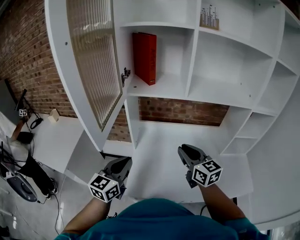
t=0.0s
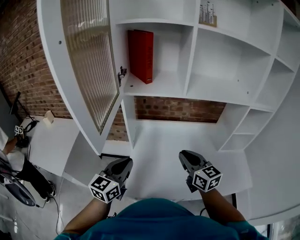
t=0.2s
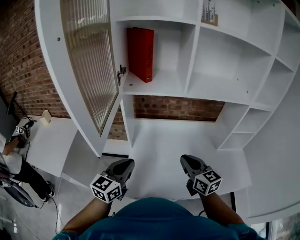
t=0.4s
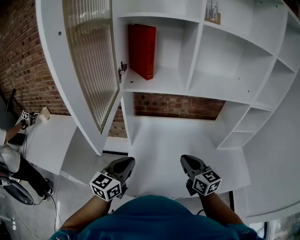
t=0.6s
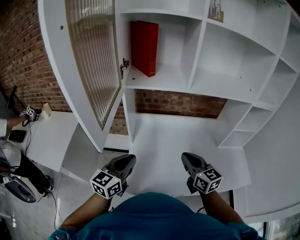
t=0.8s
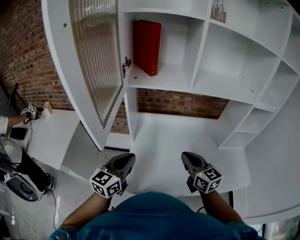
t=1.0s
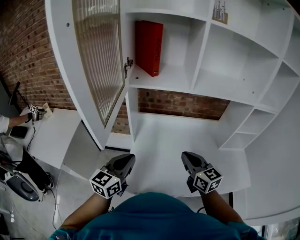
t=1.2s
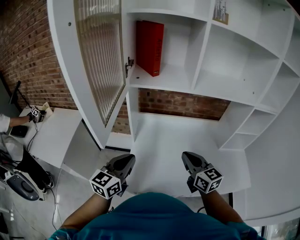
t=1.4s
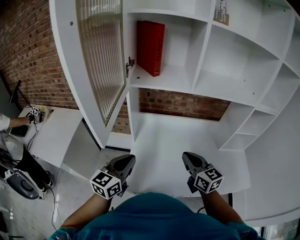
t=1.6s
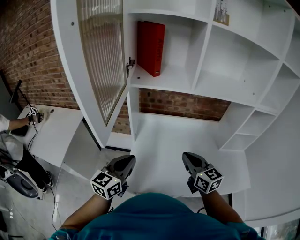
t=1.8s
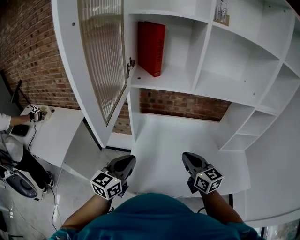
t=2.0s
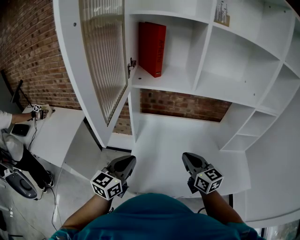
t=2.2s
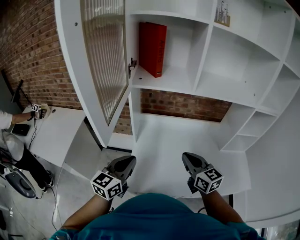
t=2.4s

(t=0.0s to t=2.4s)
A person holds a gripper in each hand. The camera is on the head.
t=0.0s - t=1.2s: The right gripper ends up approximately 5 cm from where it was.
t=1.2s - t=2.4s: Both grippers stay put.

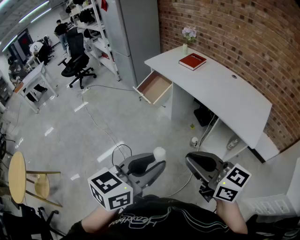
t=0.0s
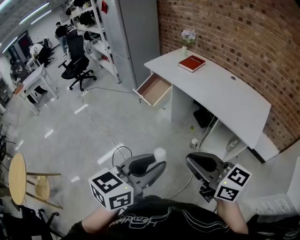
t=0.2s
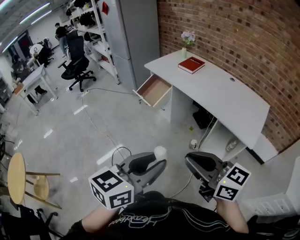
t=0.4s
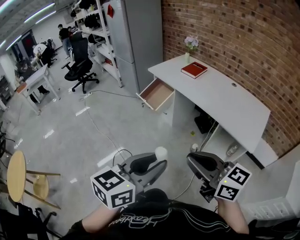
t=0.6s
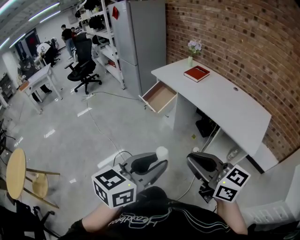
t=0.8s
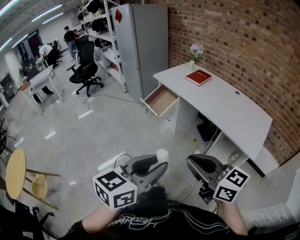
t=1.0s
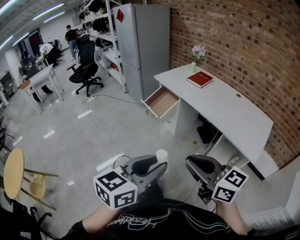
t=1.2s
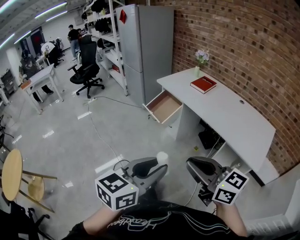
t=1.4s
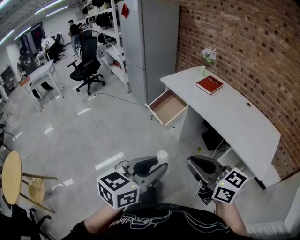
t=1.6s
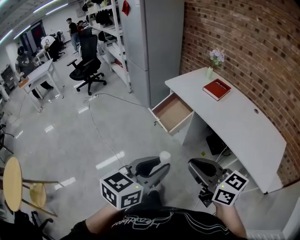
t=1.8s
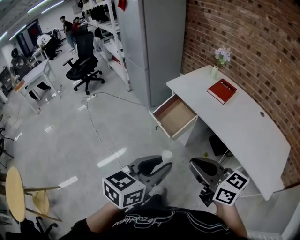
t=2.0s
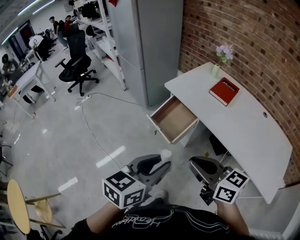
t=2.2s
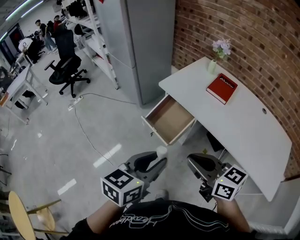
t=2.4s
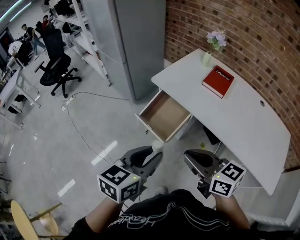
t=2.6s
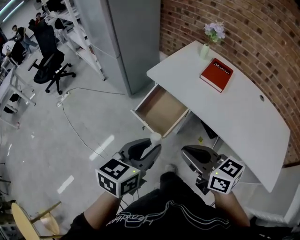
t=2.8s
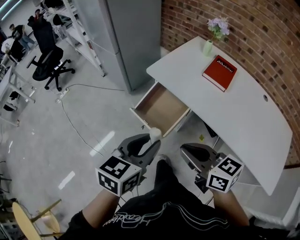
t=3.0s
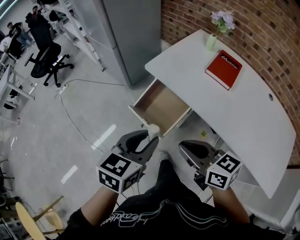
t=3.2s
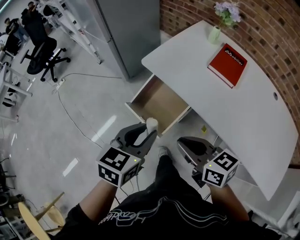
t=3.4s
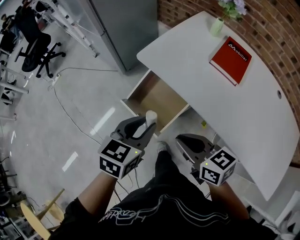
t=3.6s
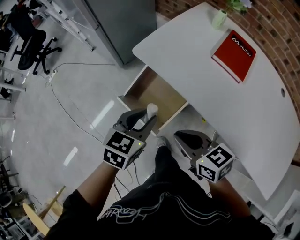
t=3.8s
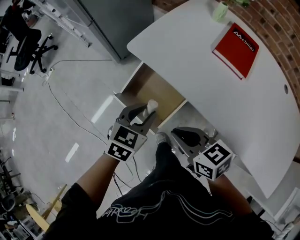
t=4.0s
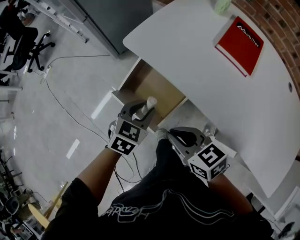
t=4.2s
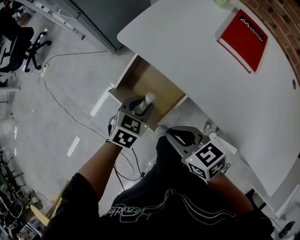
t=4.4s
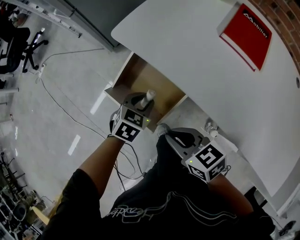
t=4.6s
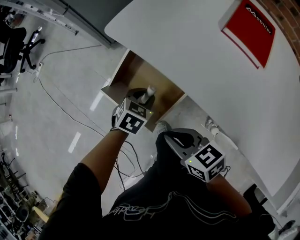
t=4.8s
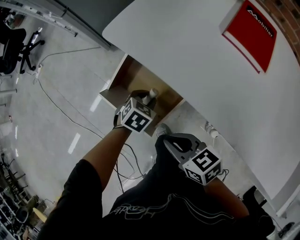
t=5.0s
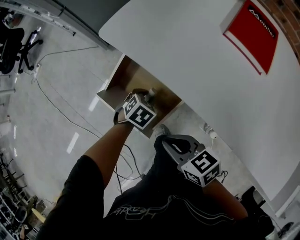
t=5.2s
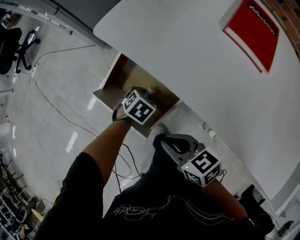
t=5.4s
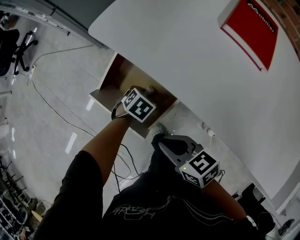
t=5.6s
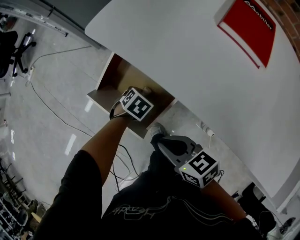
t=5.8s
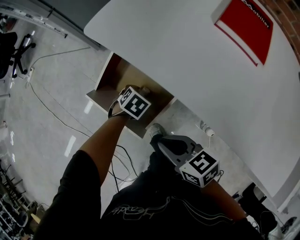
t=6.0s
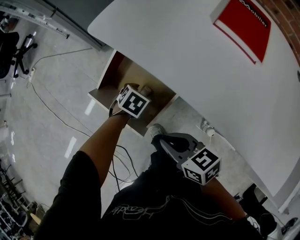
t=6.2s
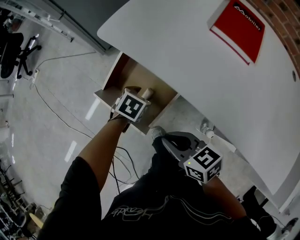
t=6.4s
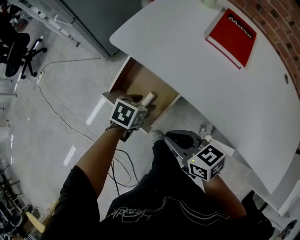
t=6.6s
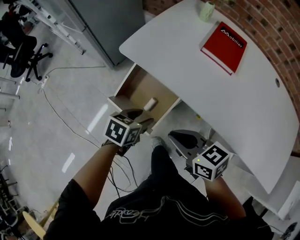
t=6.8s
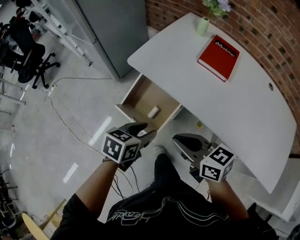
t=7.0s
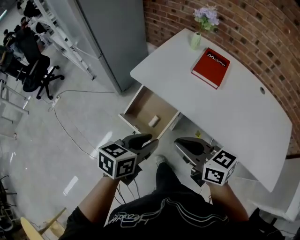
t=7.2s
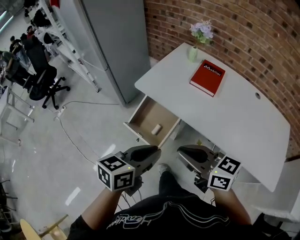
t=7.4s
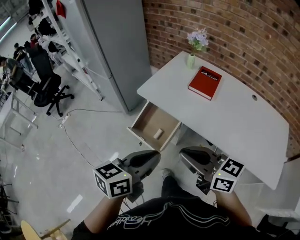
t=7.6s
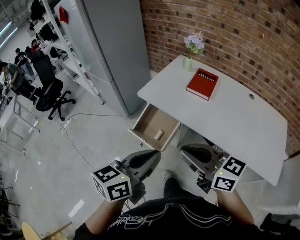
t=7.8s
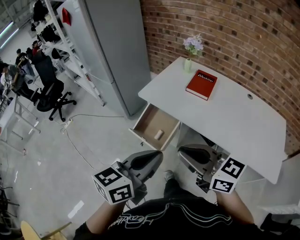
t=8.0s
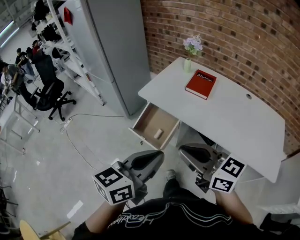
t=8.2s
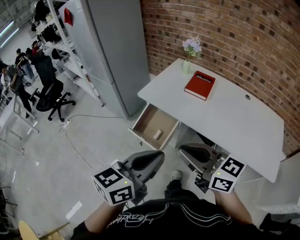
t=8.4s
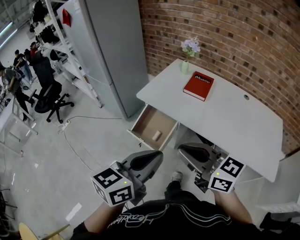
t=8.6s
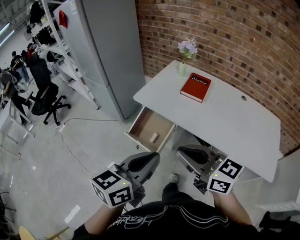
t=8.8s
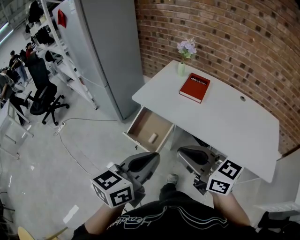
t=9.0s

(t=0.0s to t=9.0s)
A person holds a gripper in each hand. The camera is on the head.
t=0.0s - t=1.6s: The grippers both shift forward and to the left by about 15 cm.
t=1.6s - t=3.0s: Both grippers are carried forward, some 50 cm.
t=3.0s - t=4.4s: The two grippers go about 35 cm downward and forward. The left gripper changes its angle by approximately 30 degrees.
t=4.4s - t=6.0s: The right gripper travels downward by approximately 10 cm; the left gripper moves downward, about 20 cm, and turns by roughly 30 degrees.
t=6.0s - t=7.6s: Both grippers travel together upward, about 50 cm. The left gripper tips its fingers upward by roughly 60 degrees, and closes up; the right gripper rotates some 30 degrees.
t=7.6s - t=9.0s: The right gripper is displaced backward by roughly 5 cm; the left gripper travels upward and backward by some 10 cm.

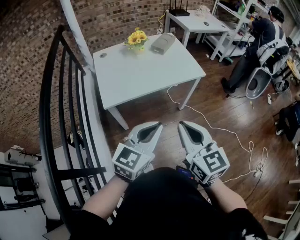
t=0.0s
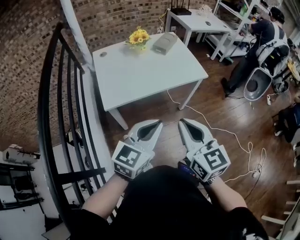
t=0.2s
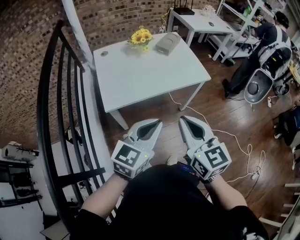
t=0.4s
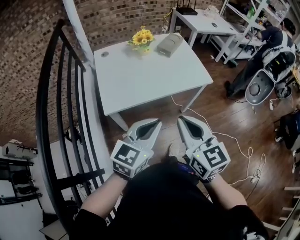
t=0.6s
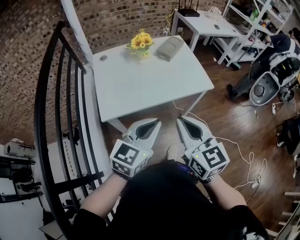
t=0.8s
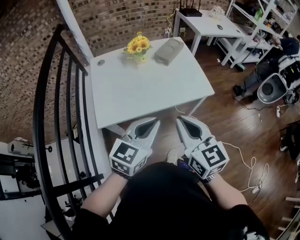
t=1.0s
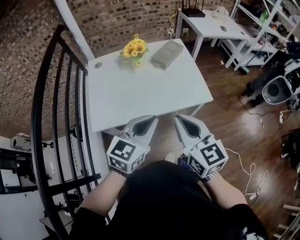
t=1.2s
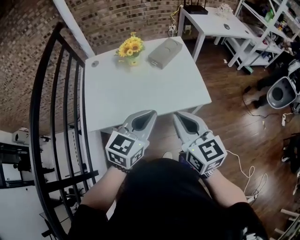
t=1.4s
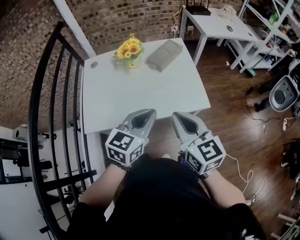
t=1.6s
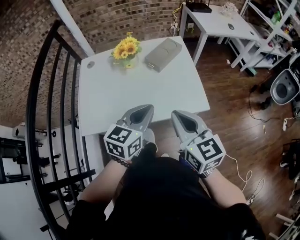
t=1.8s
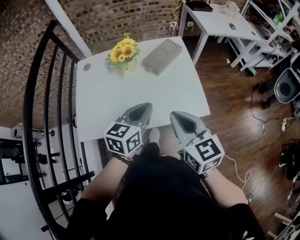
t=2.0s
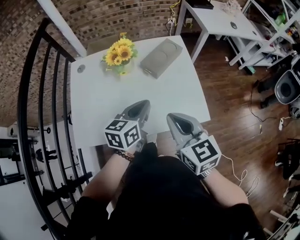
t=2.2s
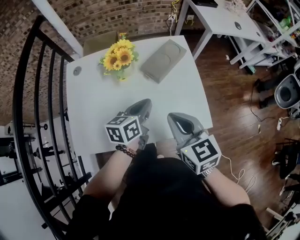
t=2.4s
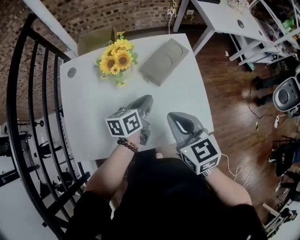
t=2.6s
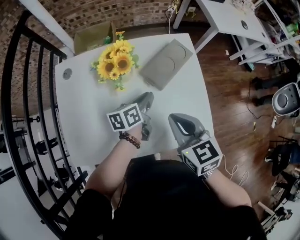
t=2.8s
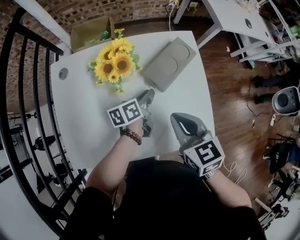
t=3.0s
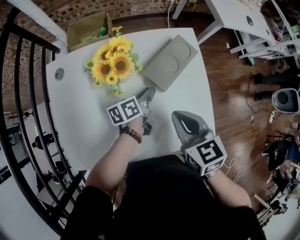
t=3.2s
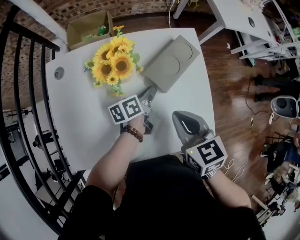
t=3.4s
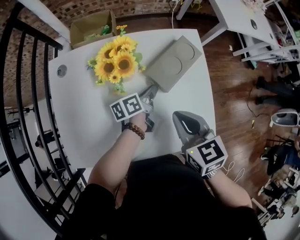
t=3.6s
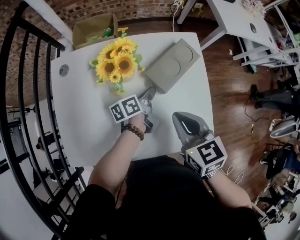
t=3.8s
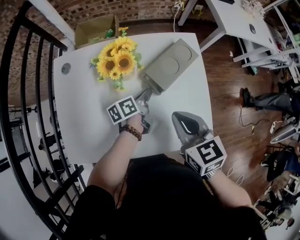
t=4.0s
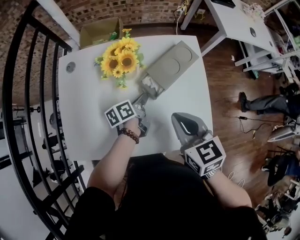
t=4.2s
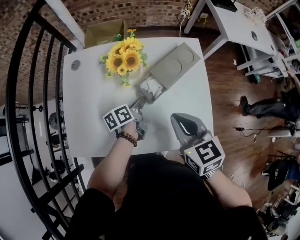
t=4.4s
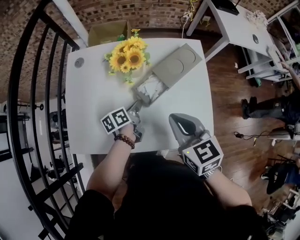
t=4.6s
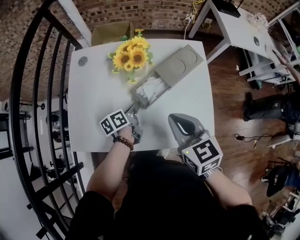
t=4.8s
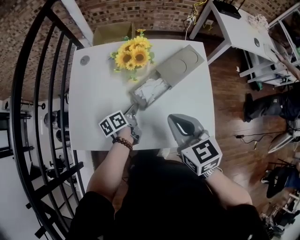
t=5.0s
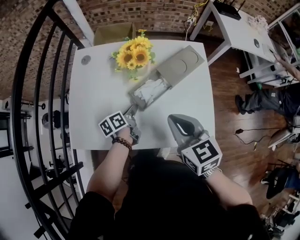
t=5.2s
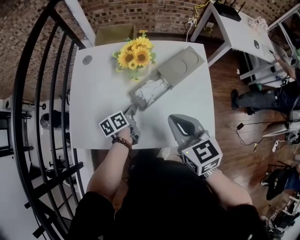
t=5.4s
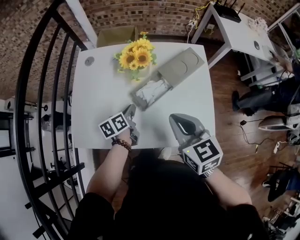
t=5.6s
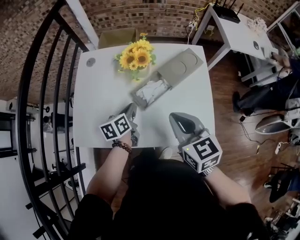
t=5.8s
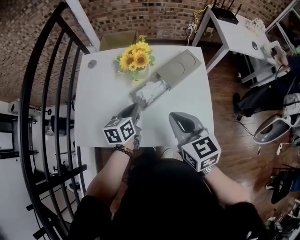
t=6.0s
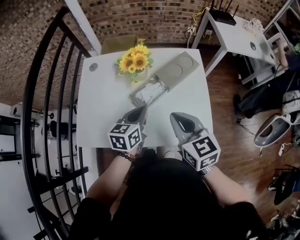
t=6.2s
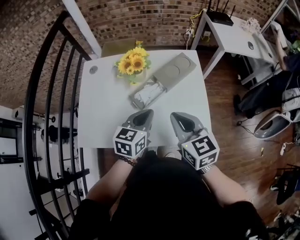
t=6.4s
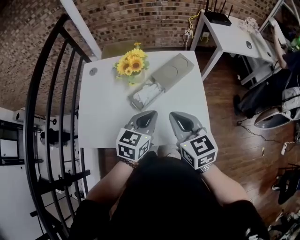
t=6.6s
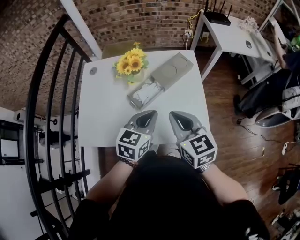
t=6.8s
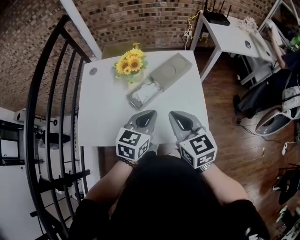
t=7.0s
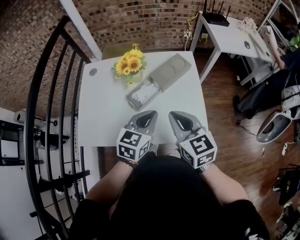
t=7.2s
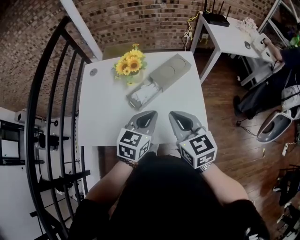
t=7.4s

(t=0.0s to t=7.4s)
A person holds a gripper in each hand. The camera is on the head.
t=0.0s - t=1.4s: Both grippers move forward, approximately 30 cm.
t=1.4s - t=3.0s: The grippers both shift forward and downward by roughly 40 cm. The right gripper rotates about 20 degrees. Meanwhile the left gripper rolls counterclockwise, seen from behind, by approximately 60 degrees.
t=3.0s - t=4.4s: The left gripper shifts by some 5 cm.
t=4.4s - t=6.0s: The right gripper changes place by about 5 cm. The left gripper goes roughly 15 cm upward, backward and to the left, and changes its angle by roughly 30 degrees.
t=6.0s - t=7.4s: The right gripper ends up some 5 cm from where it was. The left gripper moves to the right, upward and backward, some 15 cm, and swivels approximately 30 degrees.

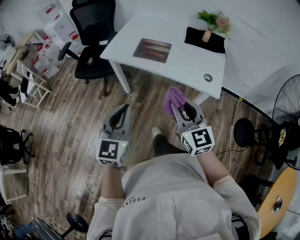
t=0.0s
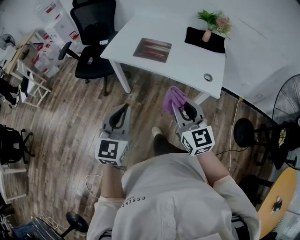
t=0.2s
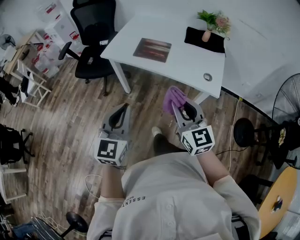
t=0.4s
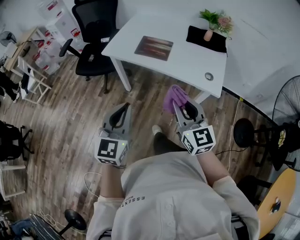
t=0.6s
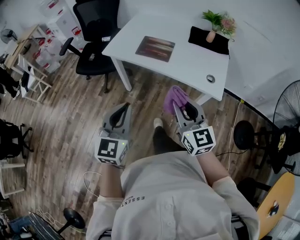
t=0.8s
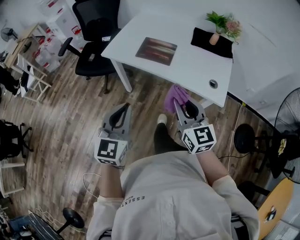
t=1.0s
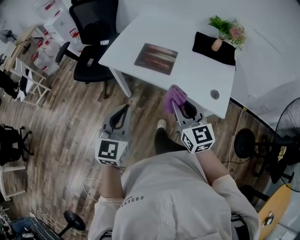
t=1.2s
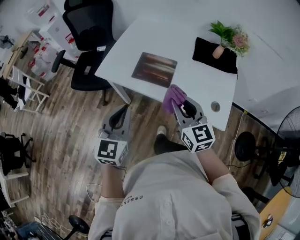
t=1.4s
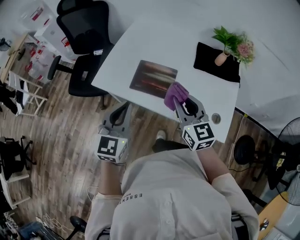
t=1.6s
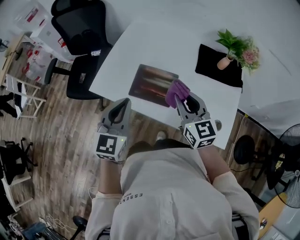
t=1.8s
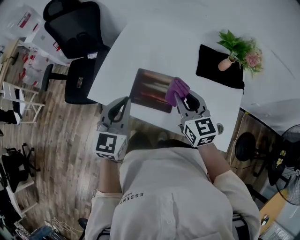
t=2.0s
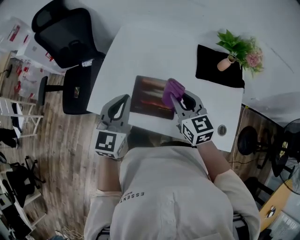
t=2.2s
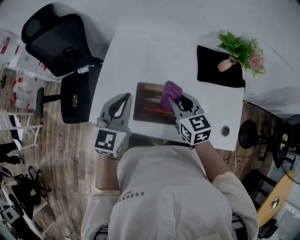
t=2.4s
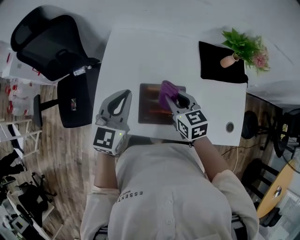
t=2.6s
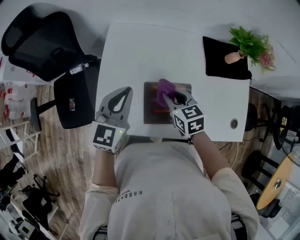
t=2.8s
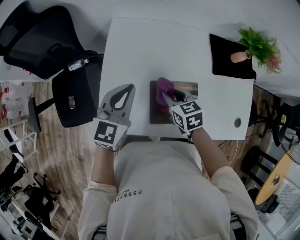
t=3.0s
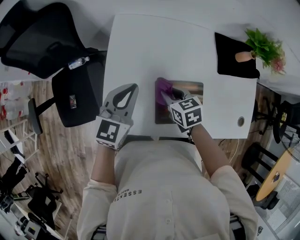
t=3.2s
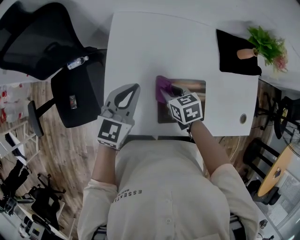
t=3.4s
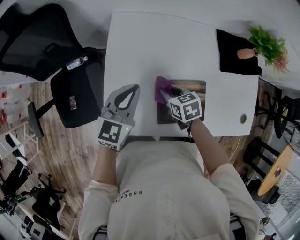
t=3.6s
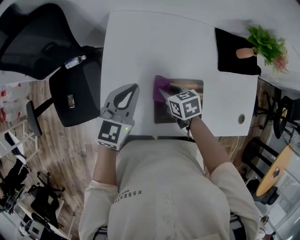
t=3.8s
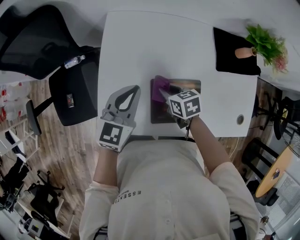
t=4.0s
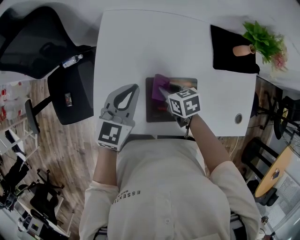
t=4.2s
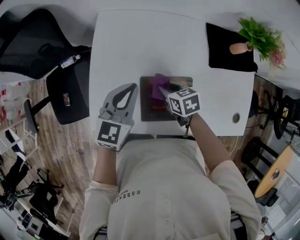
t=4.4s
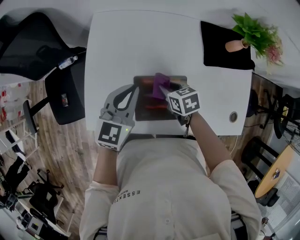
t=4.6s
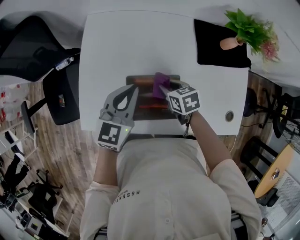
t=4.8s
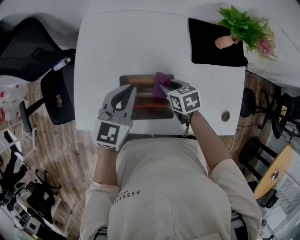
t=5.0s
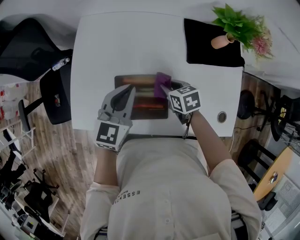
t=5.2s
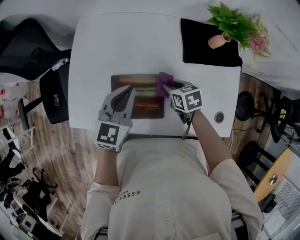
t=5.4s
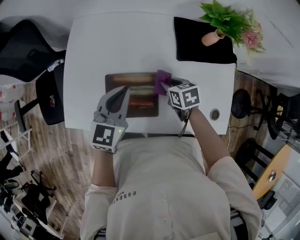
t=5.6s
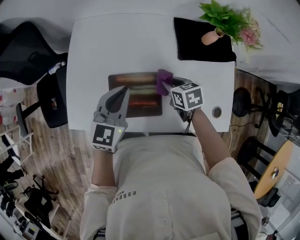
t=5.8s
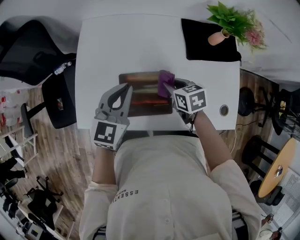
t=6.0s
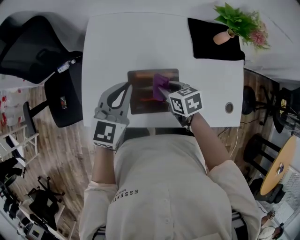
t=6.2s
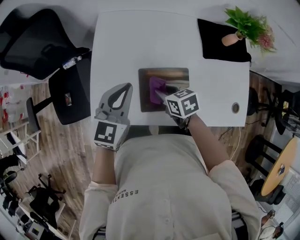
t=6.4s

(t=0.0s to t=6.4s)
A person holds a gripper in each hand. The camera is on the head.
t=0.0s - t=1.6s: Both grippers travel together forward, approximately 30 cm.
t=1.6s - t=3.2s: The right gripper is displaced forward, downward and to the left by some 35 cm, and tips its fingers downward by some 40 degrees; the left gripper is displaced forward by approximately 35 cm, and changes its angle by some 30 degrees.
t=3.2s - t=4.8s: Both grippers move to the right, about 15 cm.
t=4.8s - t=6.4s: The two grippers go roughly 10 cm to the left.
